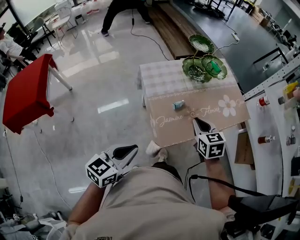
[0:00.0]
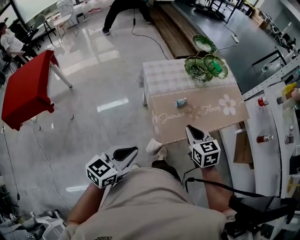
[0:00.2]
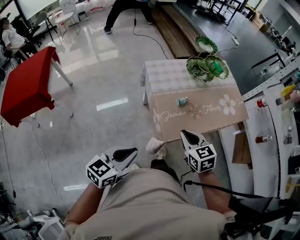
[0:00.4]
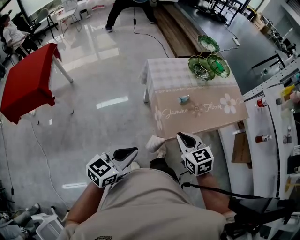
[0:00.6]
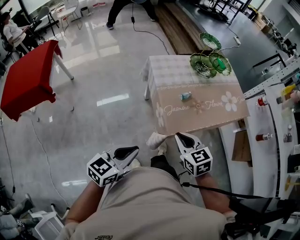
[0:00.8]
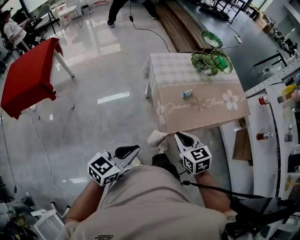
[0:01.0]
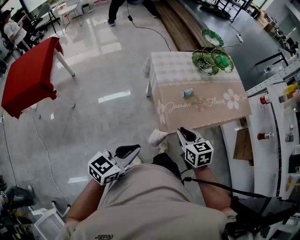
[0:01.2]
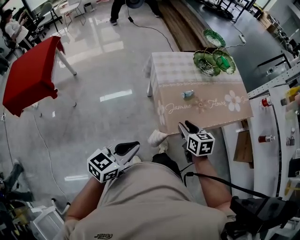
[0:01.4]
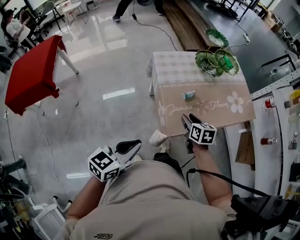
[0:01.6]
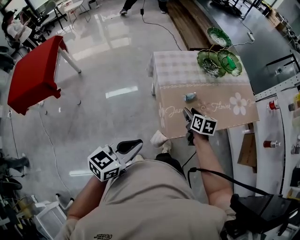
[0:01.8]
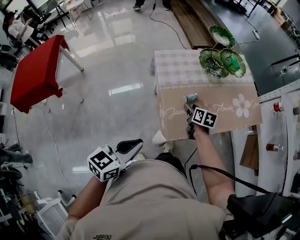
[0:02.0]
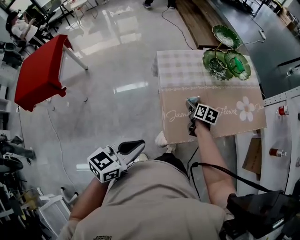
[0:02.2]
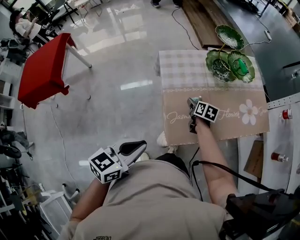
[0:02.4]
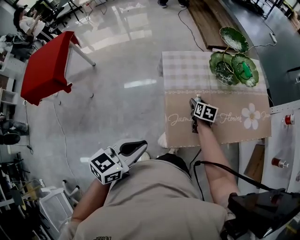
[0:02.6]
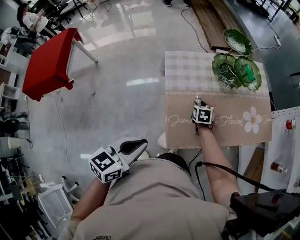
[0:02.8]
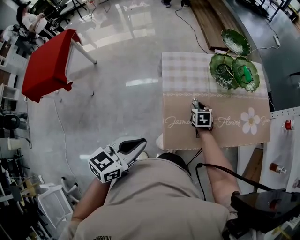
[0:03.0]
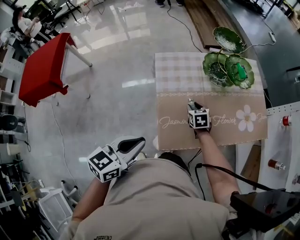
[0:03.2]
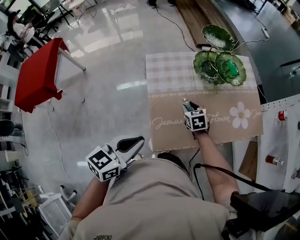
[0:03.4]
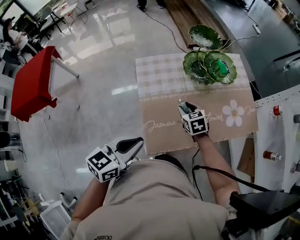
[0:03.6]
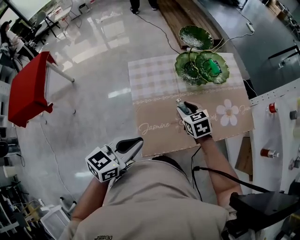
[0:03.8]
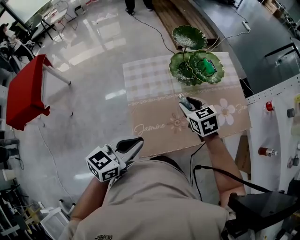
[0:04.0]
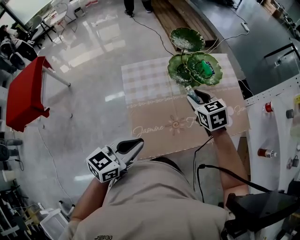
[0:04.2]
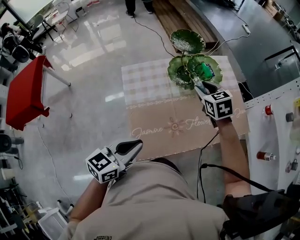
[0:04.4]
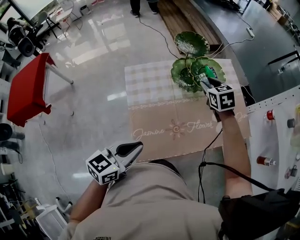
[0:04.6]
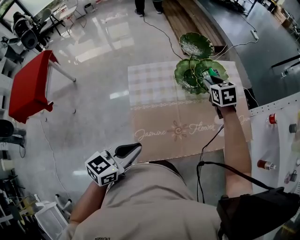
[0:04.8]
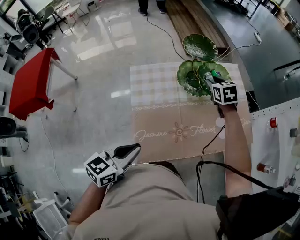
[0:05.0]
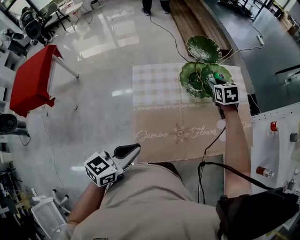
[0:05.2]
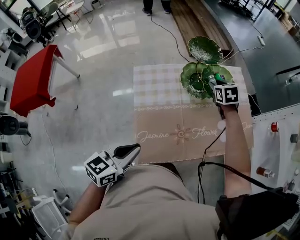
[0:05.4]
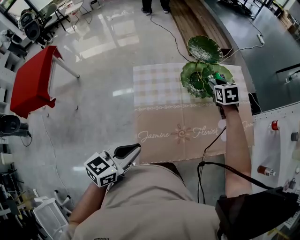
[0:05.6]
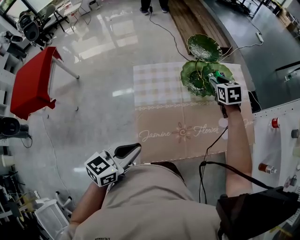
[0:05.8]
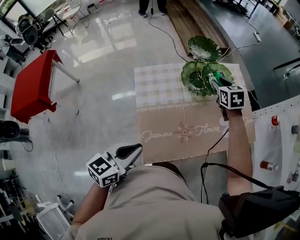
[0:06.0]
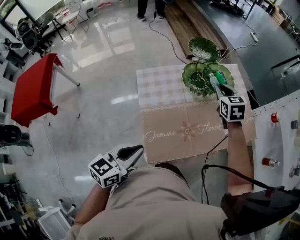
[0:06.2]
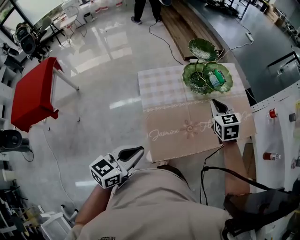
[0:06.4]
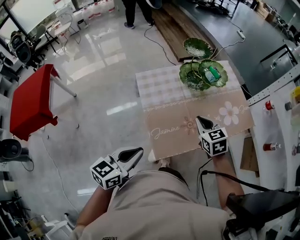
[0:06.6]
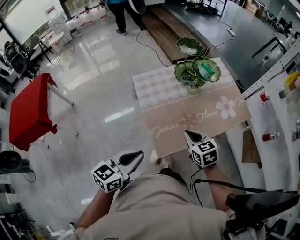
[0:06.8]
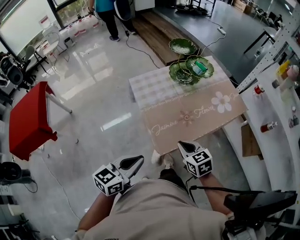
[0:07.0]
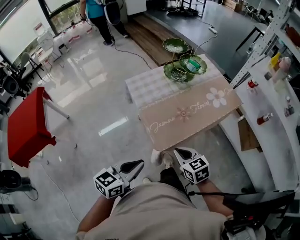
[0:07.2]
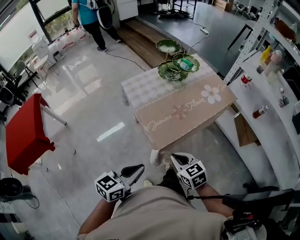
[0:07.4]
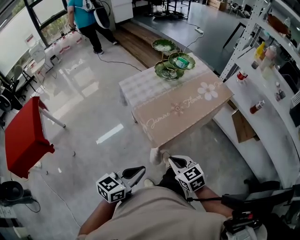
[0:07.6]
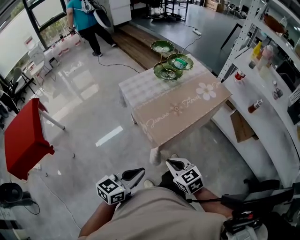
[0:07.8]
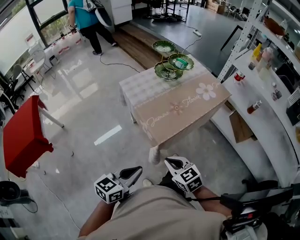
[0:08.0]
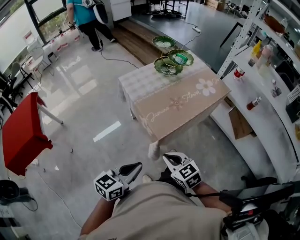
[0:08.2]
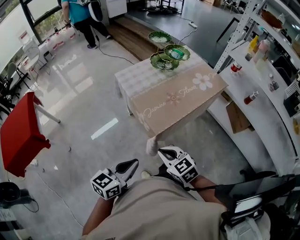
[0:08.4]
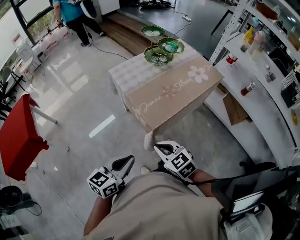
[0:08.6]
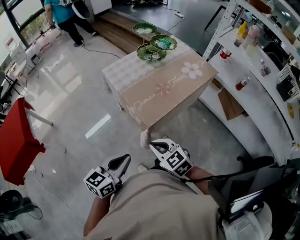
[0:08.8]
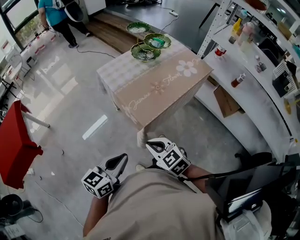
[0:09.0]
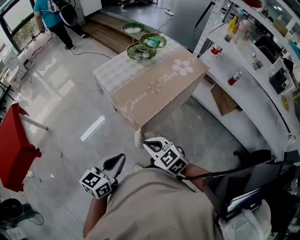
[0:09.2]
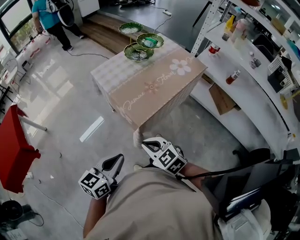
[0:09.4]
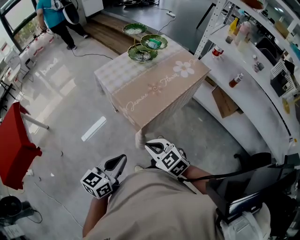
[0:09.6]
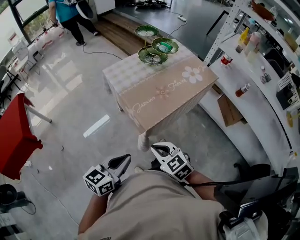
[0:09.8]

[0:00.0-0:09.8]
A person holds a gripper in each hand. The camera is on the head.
0.0 to 1.4 s: The left gripper goes some 5 cm backward. The right gripper travels backward, downward and to the left by some 15 cm, and opens.
1.4 to 2.8 s: The left gripper is displaced forward and to the right by approximately 15 cm. The right gripper travels forward and downward by some 30 cm.
2.8 to 4.2 s: The right gripper moves upward and to the right, about 25 cm, and rotates approximately 20 degrees; the left gripper shifts about 15 cm to the right and forward.
4.2 to 5.6 s: The right gripper heads forward, covering roughly 15 cm.
5.6 to 7.0 s: The right gripper shifts approximately 50 cm backward, and closes up; the left gripper shifts some 15 cm backward.
7.0 to 8.4 s: The two grippers go about 15 cm backward.
8.4 to 9.8 s: The grippers stay close to where they were, moving slightly.

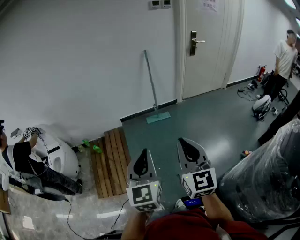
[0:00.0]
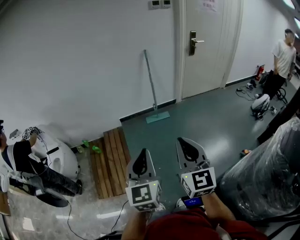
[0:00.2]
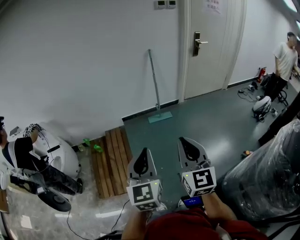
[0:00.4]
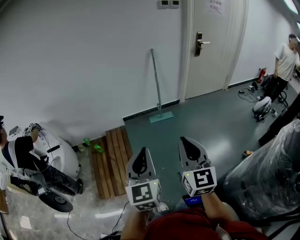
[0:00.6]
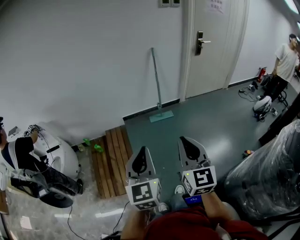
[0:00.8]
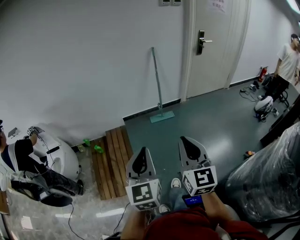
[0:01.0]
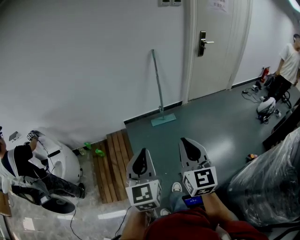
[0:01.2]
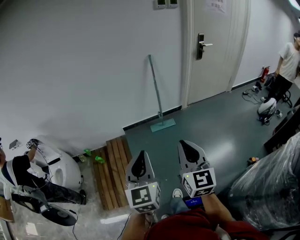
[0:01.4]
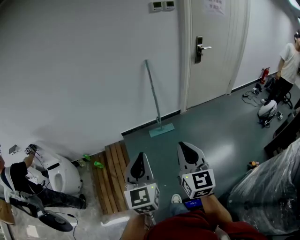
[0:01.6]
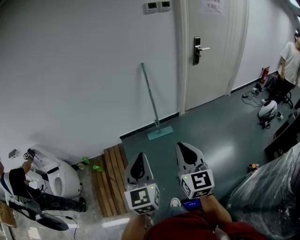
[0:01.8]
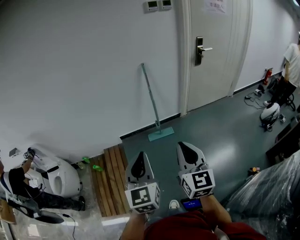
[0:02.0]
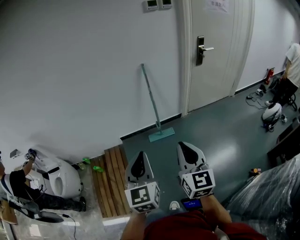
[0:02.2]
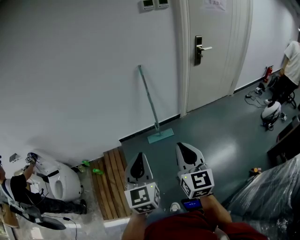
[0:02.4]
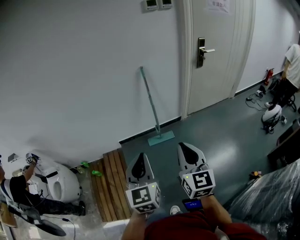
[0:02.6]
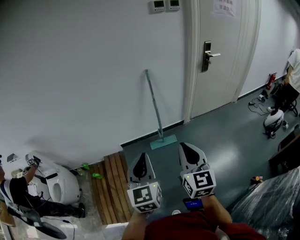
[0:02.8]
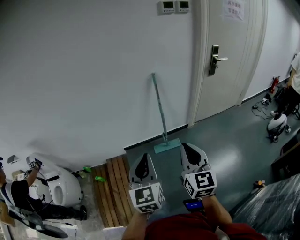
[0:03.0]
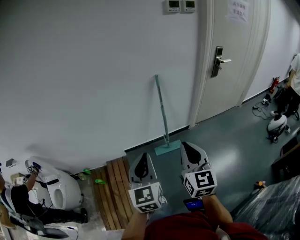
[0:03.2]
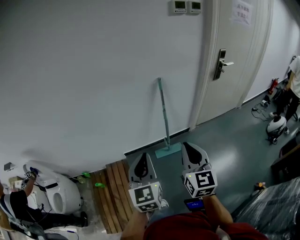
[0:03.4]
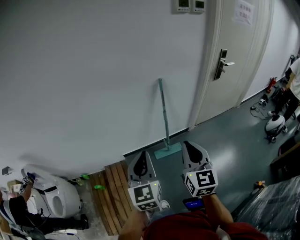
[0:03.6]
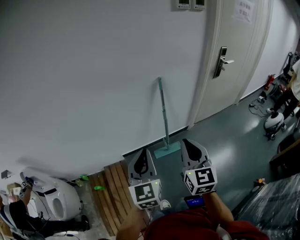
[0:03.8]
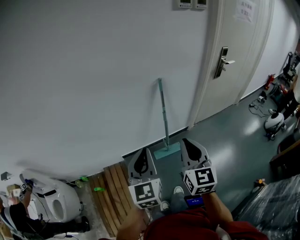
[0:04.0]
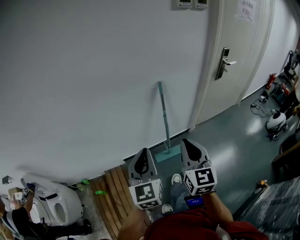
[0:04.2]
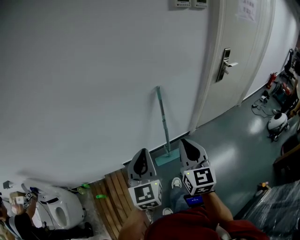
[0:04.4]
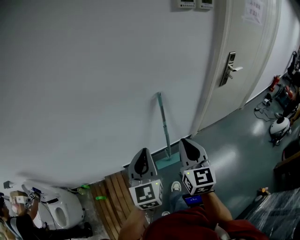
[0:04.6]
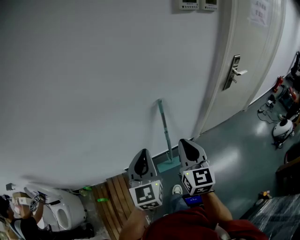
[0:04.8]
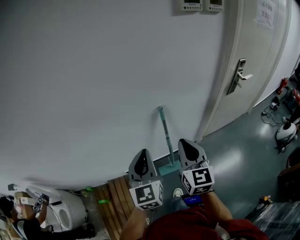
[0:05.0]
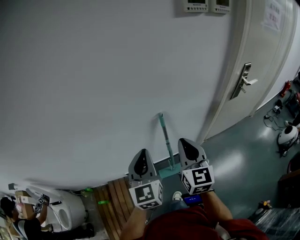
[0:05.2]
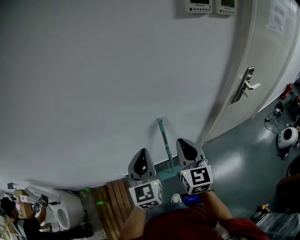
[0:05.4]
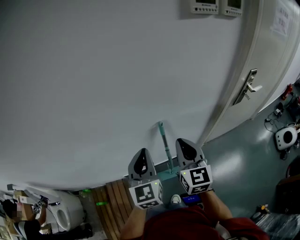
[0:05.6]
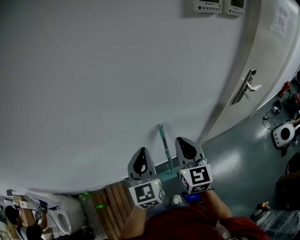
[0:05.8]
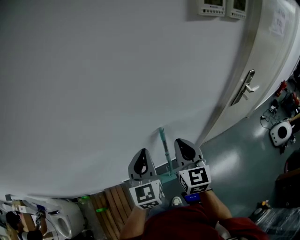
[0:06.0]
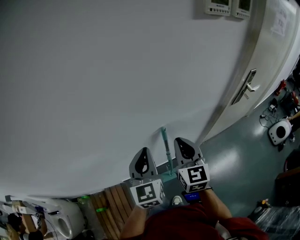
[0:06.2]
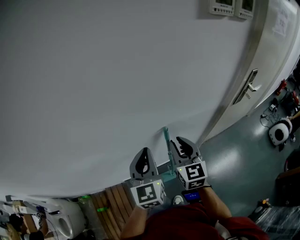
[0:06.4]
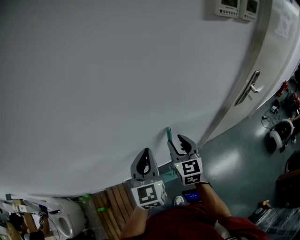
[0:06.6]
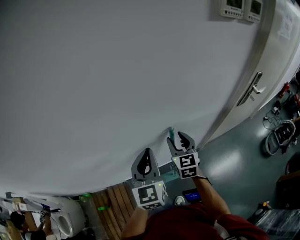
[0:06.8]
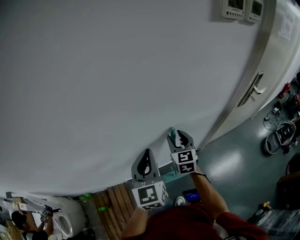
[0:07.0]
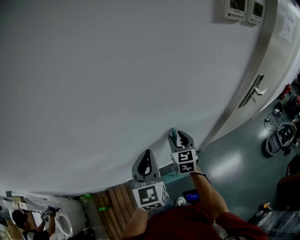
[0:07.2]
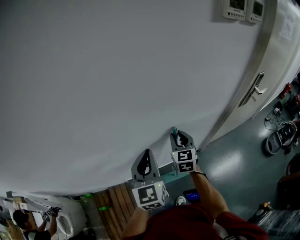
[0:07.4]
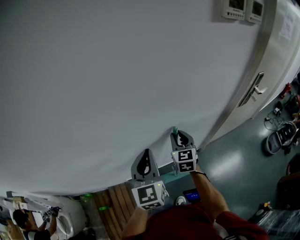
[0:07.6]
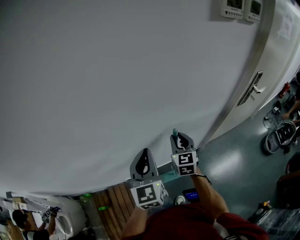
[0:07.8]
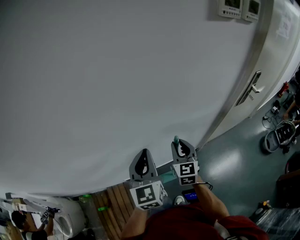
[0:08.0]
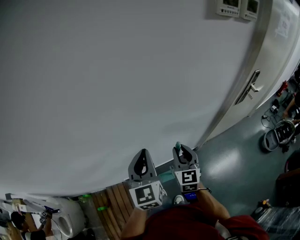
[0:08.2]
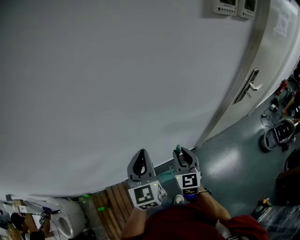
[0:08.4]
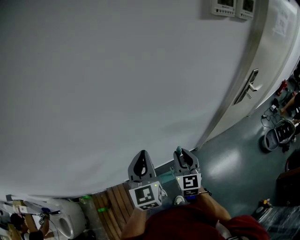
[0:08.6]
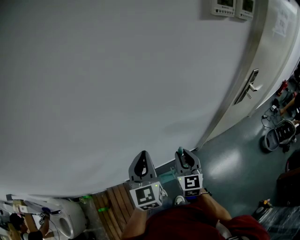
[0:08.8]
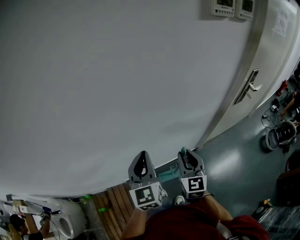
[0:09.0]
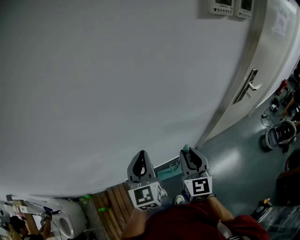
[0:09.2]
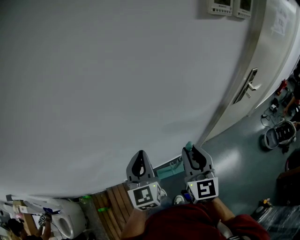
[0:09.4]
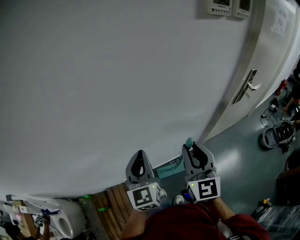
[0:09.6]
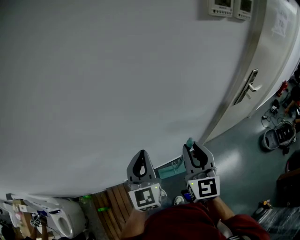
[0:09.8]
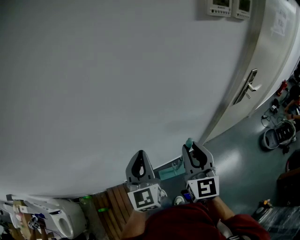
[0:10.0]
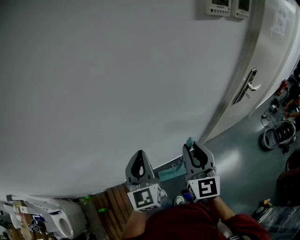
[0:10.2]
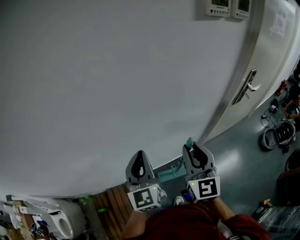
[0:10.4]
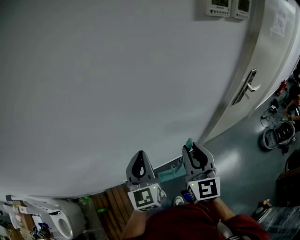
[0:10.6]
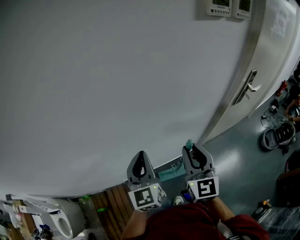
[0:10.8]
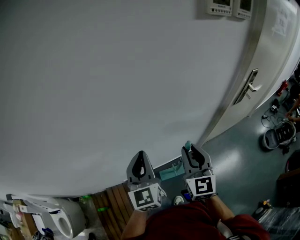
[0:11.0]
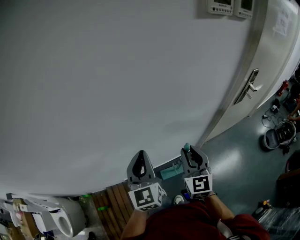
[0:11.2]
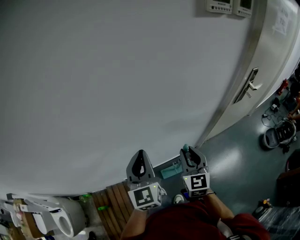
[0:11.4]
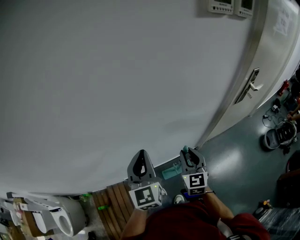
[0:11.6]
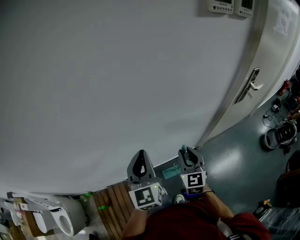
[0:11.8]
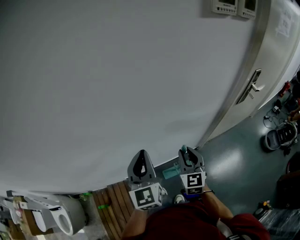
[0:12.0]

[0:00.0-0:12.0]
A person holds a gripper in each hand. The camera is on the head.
0.0 to 1.6 s: Both grippers travel together forward, roughly 20 cm.
1.6 to 3.0 s: Both grippers travel together forward, some 25 cm.
3.0 to 4.4 s: Both grippers travel together forward, roughly 30 cm.
4.4 to 6.0 s: The grippers both shift forward by approximately 30 cm.
6.0 to 7.6 s: The right gripper is displaced downward and forward by approximately 15 cm, and opens its fingers.
7.6 to 9.0 s: The right gripper is displaced backward by roughly 10 cm.
9.0 to 10.4 s: The right gripper travels upward by roughly 10 cm.
10.4 to 12.0 s: The right gripper heads downward, covering roughly 15 cm.

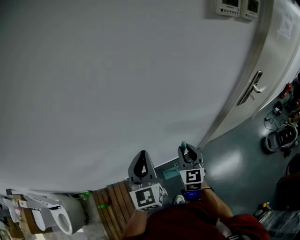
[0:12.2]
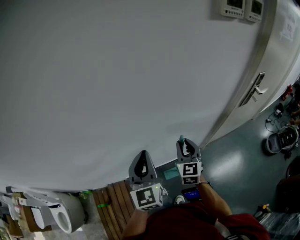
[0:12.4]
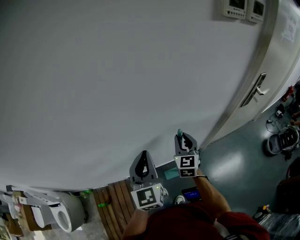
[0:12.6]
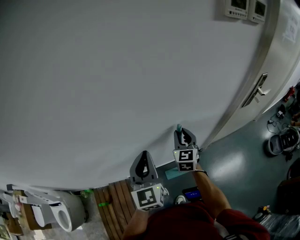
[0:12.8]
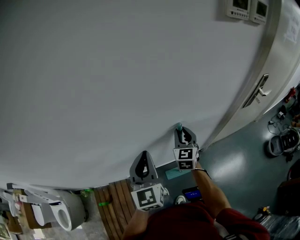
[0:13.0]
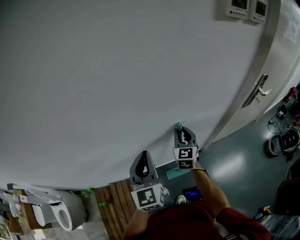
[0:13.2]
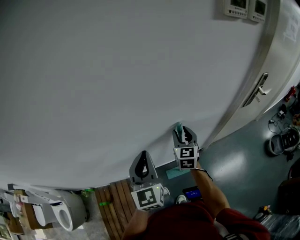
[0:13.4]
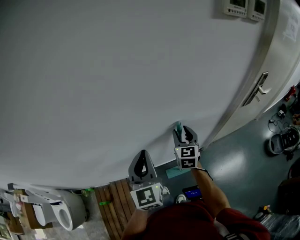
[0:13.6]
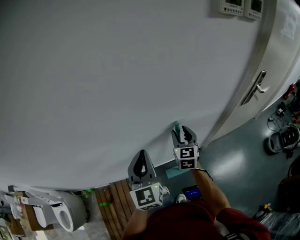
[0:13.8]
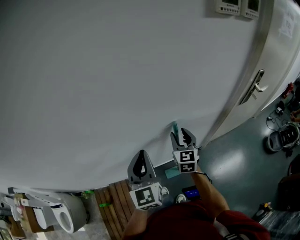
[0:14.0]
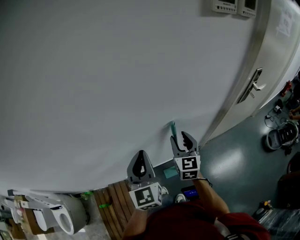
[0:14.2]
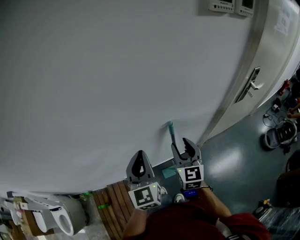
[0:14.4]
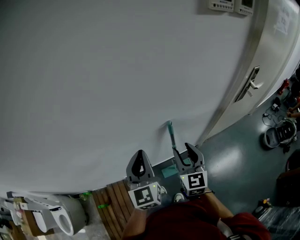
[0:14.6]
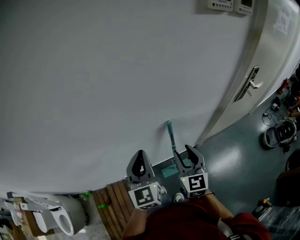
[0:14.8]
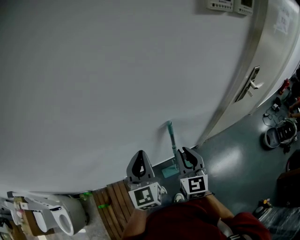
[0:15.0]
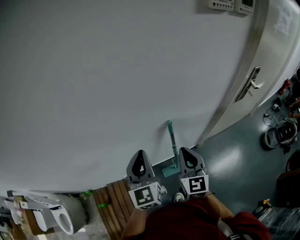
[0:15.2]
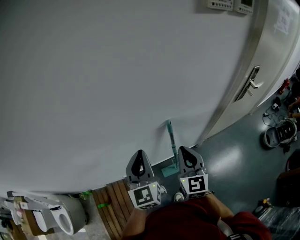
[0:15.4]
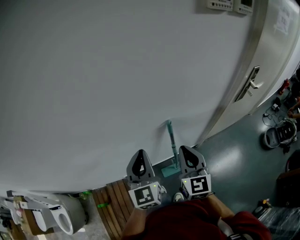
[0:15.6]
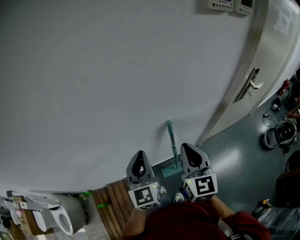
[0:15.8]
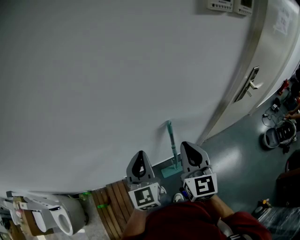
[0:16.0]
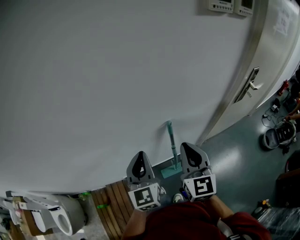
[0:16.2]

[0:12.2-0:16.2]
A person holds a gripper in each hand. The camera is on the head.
12.2 to 13.6 s: The right gripper is displaced forward by roughly 10 cm, and opens.
13.6 to 14.8 s: The right gripper goes approximately 15 cm backward and upward.
14.8 to 16.2 s: The right gripper is displaced upward by approximately 5 cm, and closes its fingers.
